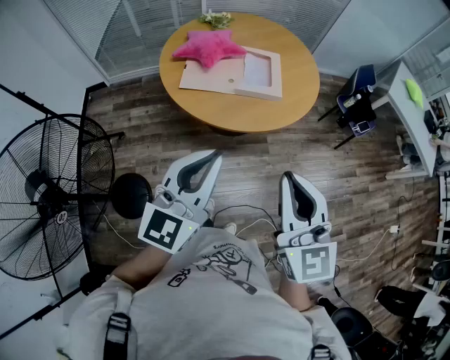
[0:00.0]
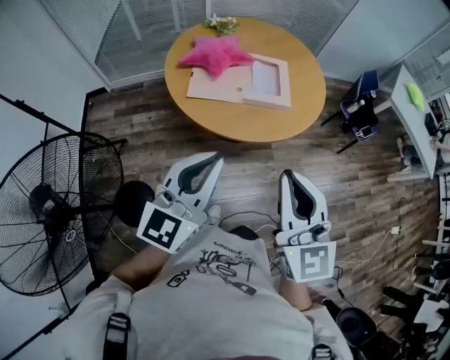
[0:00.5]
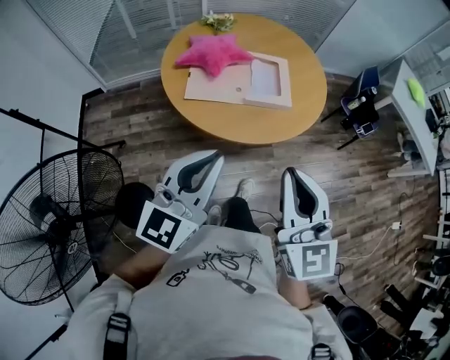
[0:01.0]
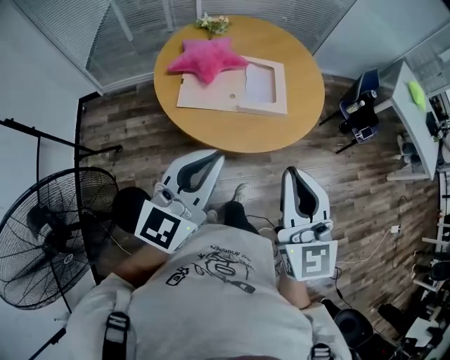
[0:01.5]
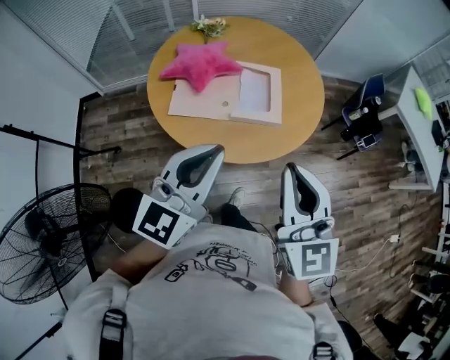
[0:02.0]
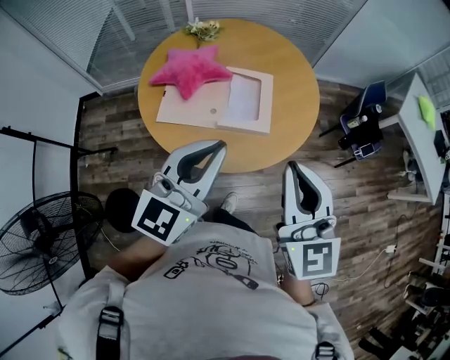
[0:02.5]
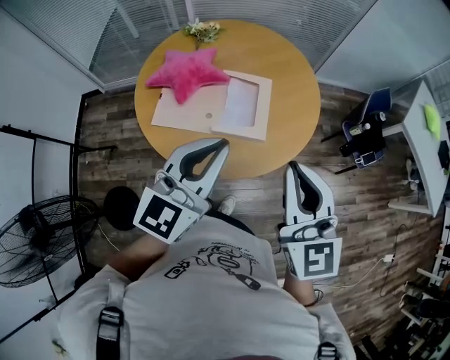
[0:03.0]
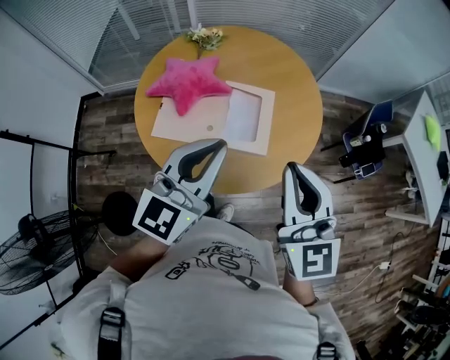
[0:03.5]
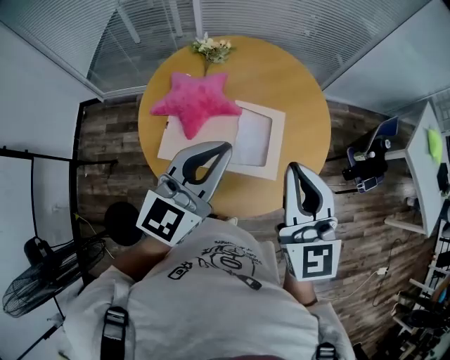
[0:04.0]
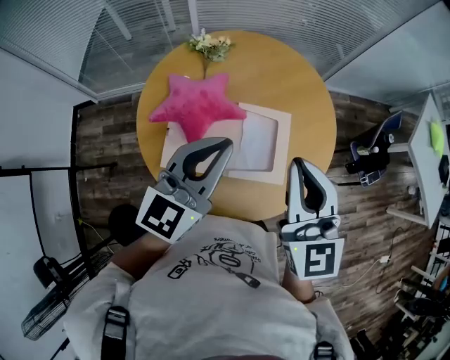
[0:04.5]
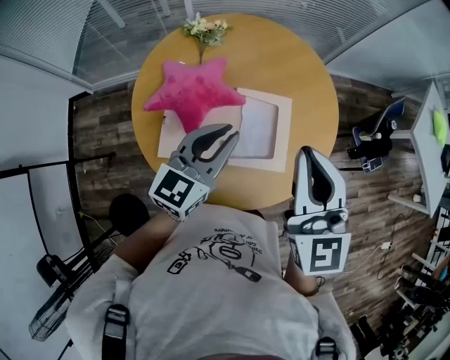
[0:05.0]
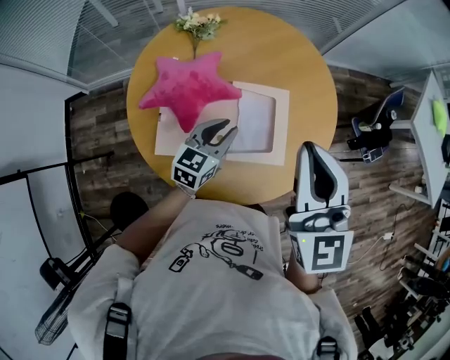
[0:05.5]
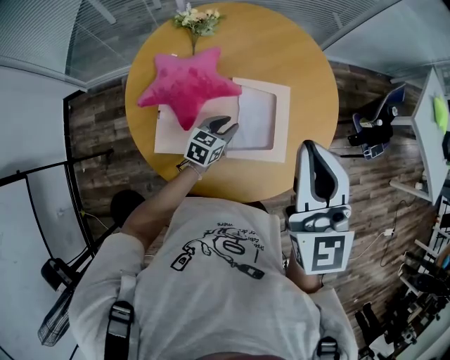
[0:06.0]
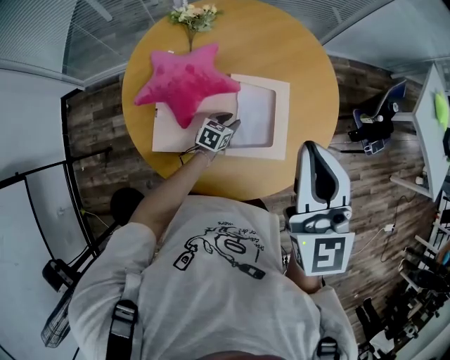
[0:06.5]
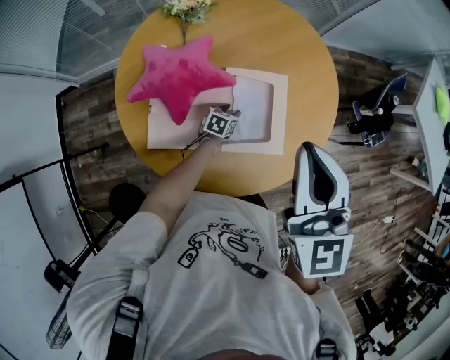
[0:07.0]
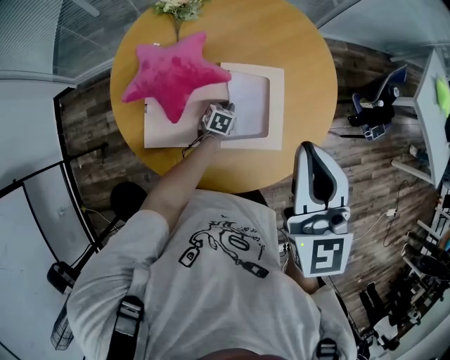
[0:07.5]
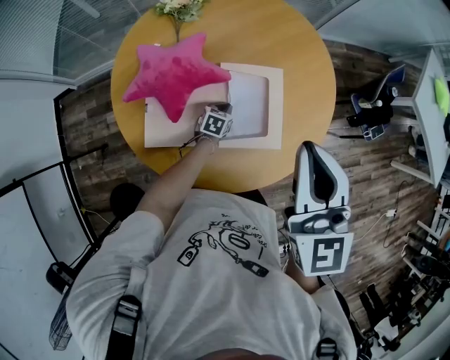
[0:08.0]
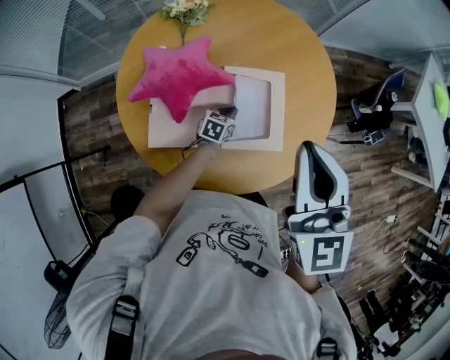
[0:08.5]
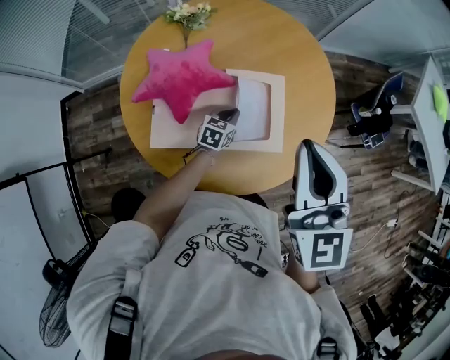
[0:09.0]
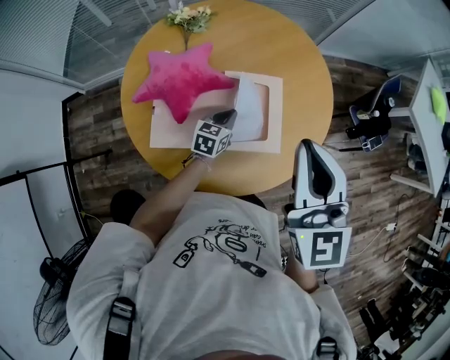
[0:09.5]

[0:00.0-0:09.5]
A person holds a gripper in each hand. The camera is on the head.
0:00.0 to 0:02.0: Both grippers travel together forward, some 20 cm.
0:02.0 to 0:04.0: Both grippers travel together forward, some 30 cm.
0:04.0 to 0:05.5: The right gripper moves forward, roughly 10 cm. The left gripper is displaced downward and forward by approximately 30 cm, and turns by about 30 degrees.
0:05.5 to 0:07.5: The left gripper is displaced downward by approximately 30 cm, and tilts its fingers some 30 degrees downward.
0:07.5 to 0:09.5: The left gripper moves upward, about 15 cm, and changes its angle by about 20 degrees.

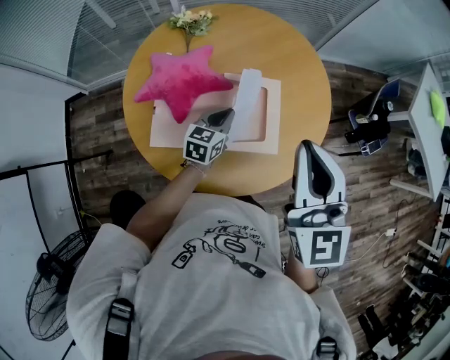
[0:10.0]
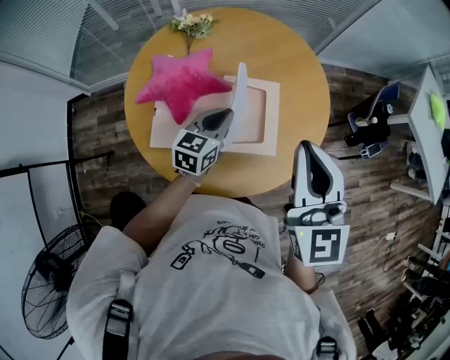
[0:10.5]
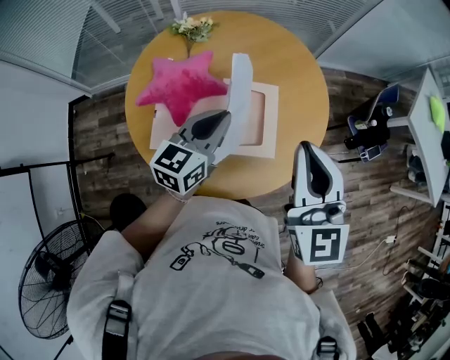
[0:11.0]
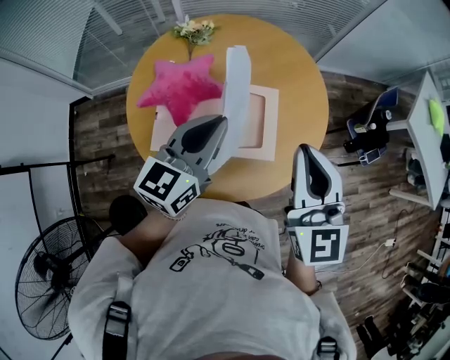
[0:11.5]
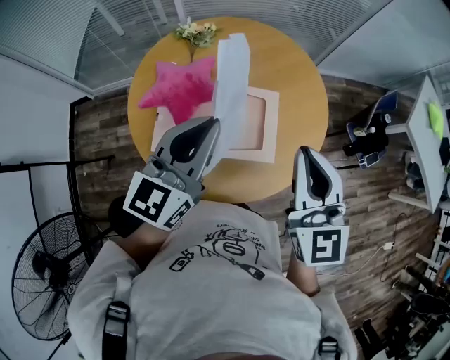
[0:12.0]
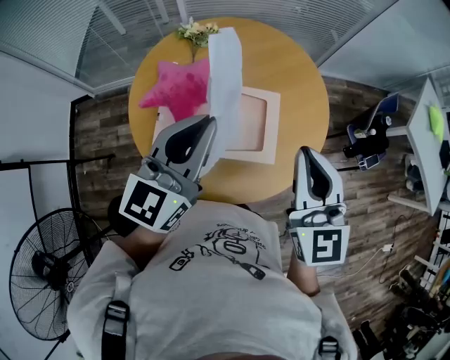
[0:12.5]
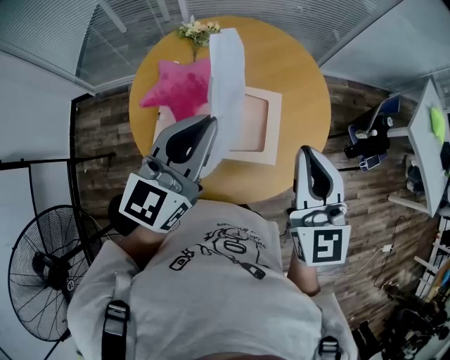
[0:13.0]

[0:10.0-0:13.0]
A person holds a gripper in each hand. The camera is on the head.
0:10.0 to 0:11.5: The left gripper is displaced upward by some 25 cm, and changes its angle by some 20 degrees.
0:11.5 to 0:13.0: The left gripper moves upward, roughly 5 cm.

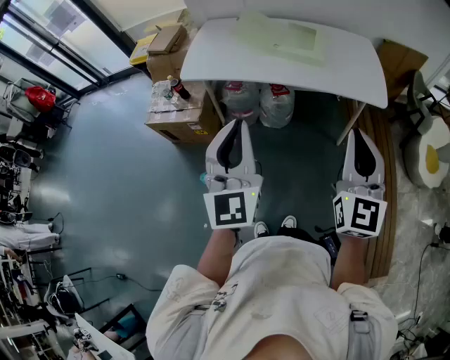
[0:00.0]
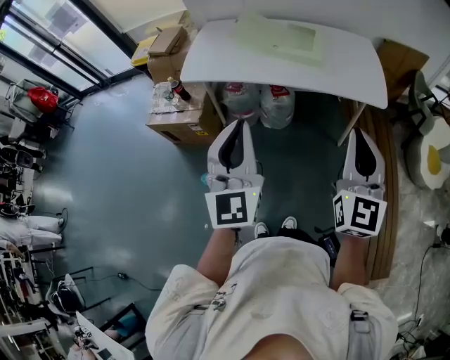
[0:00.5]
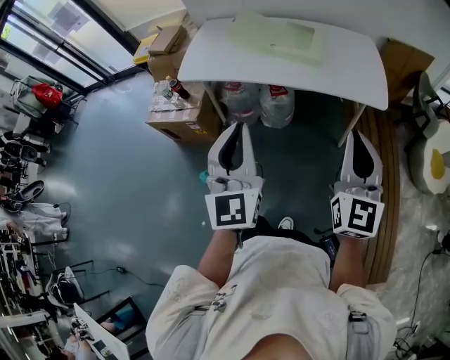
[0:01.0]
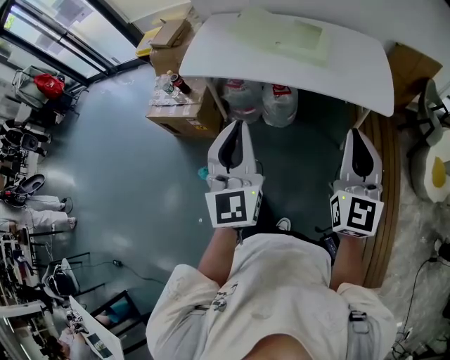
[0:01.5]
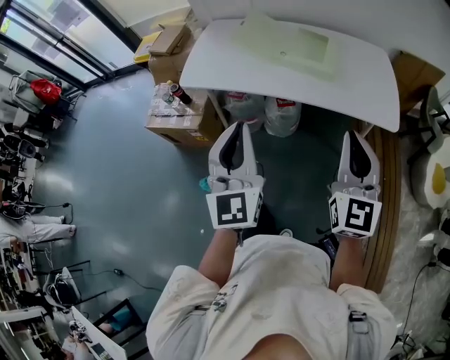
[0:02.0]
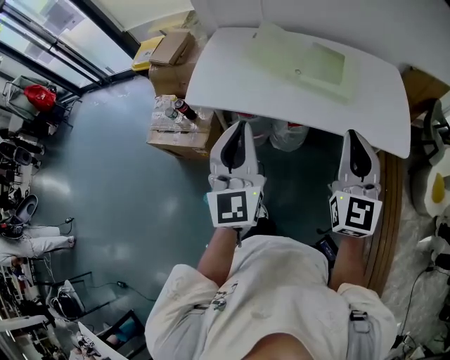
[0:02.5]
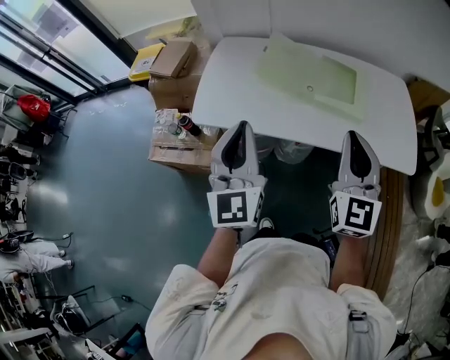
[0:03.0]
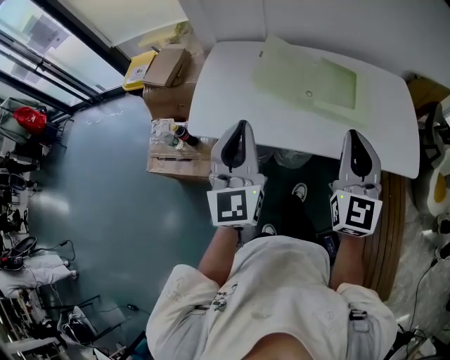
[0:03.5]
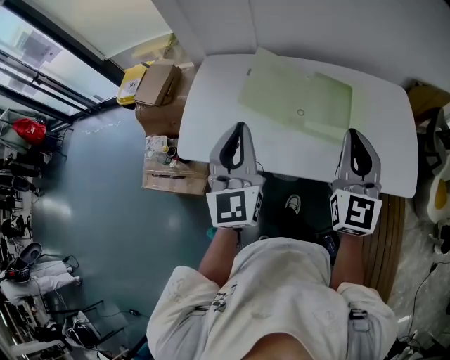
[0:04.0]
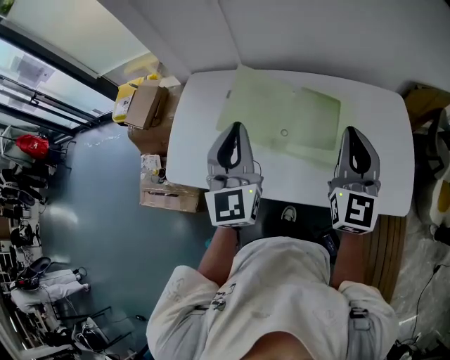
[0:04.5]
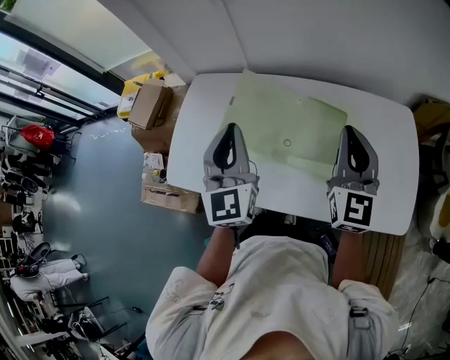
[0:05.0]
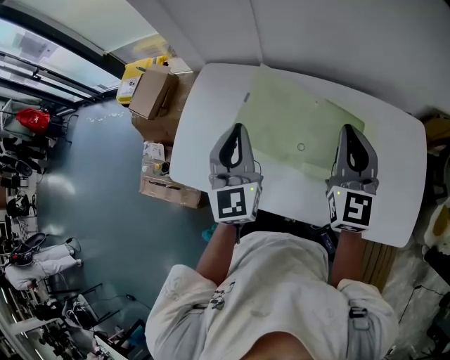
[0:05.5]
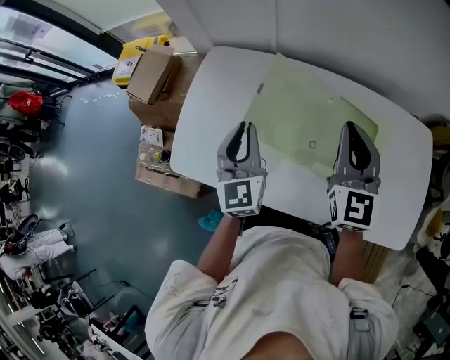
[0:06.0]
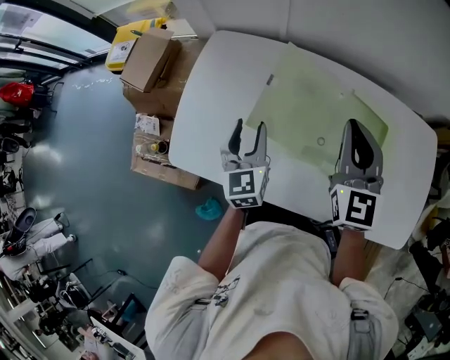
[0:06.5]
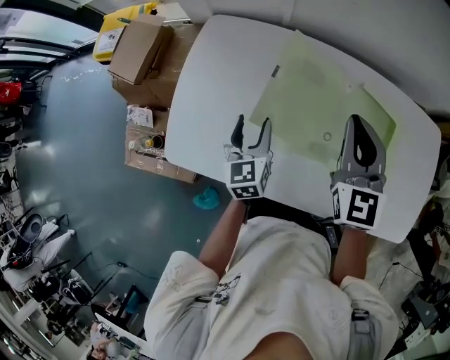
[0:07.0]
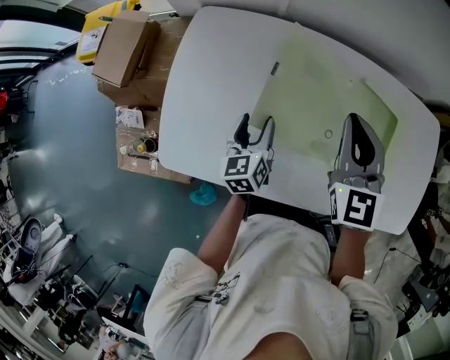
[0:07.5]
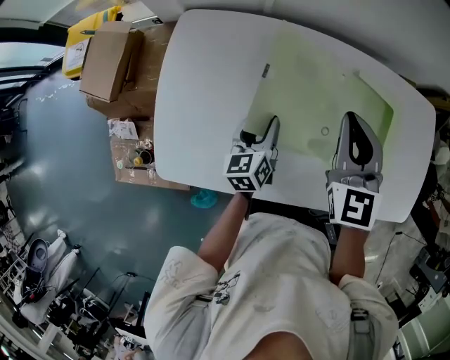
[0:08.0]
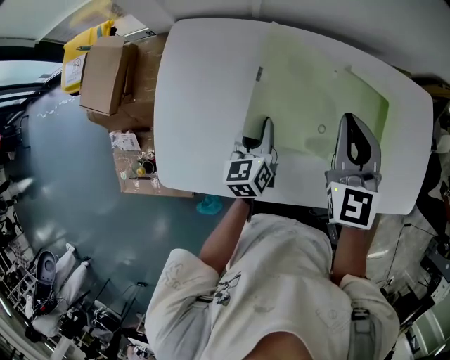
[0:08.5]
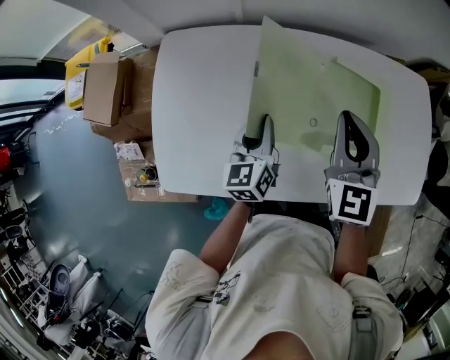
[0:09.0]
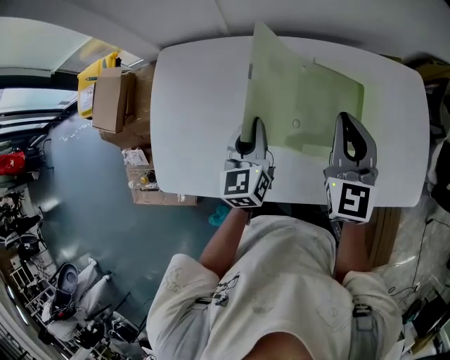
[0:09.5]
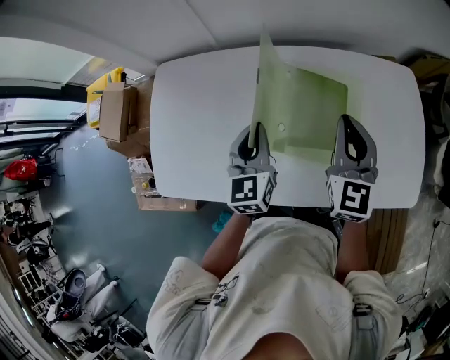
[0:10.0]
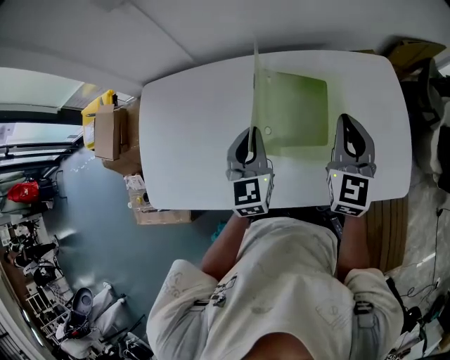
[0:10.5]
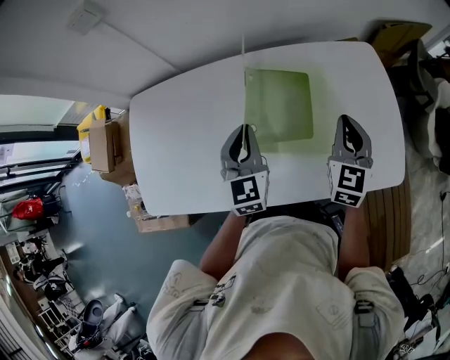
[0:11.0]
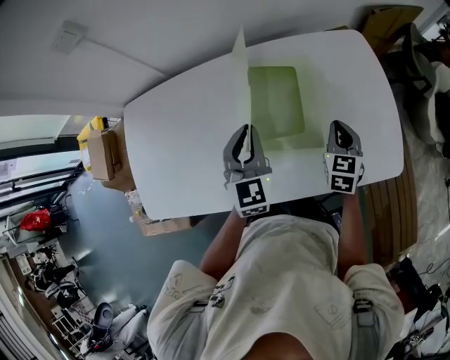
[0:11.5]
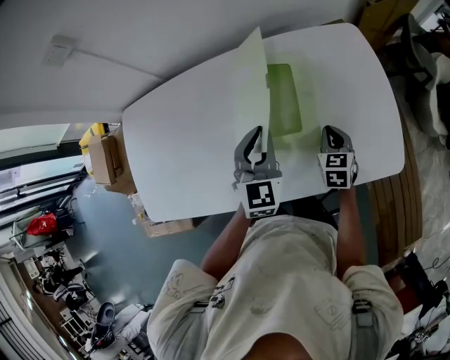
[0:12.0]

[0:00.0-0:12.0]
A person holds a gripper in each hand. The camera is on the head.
0:00.0 to 0:02.0: Both grippers travel together forward, about 10 cm.
0:02.0 to 0:04.0: The grippers both shift forward by roughly 35 cm.
0:04.0 to 0:06.0: The right gripper is displaced forward by some 25 cm. Meanwhile the left gripper travels forward and downward by roughly 25 cm.
0:06.0 to 0:08.0: The right gripper goes some 15 cm downward, to the left and forward. The left gripper is displaced downward by roughly 20 cm, changes its angle by roughly 40 degrees, and opens its fingers.
0:08.0 to 0:10.0: The right gripper is displaced to the right by some 20 cm. The left gripper travels upward and to the right by roughly 20 cm, rotates some 30 degrees, and closes.
0:10.0 to 0:12.0: The left gripper travels to the right by approximately 25 cm, and swivels about 30 degrees, while the right gripper moves to the right and downward, some 30 cm, and rotates roughly 30 degrees.

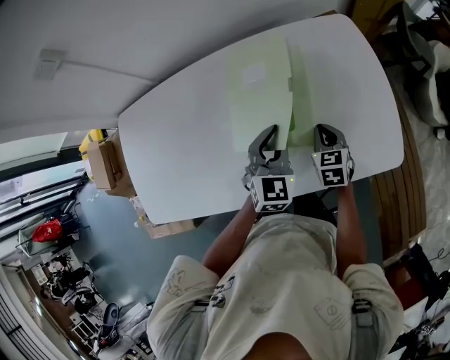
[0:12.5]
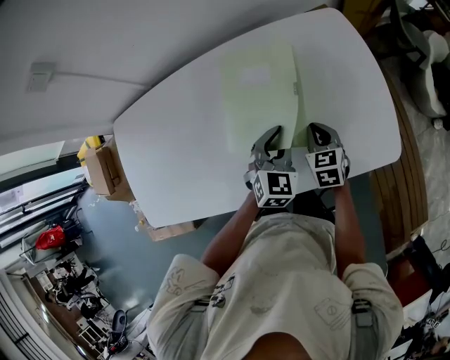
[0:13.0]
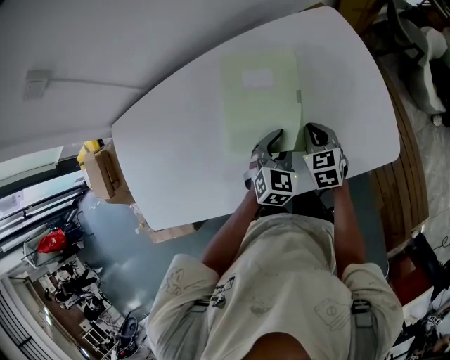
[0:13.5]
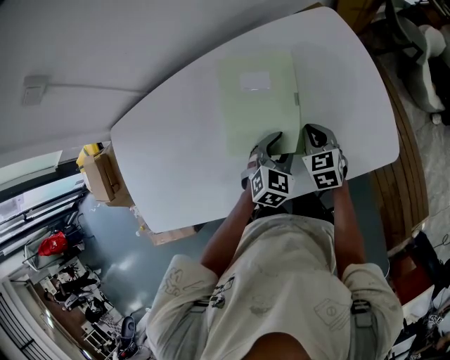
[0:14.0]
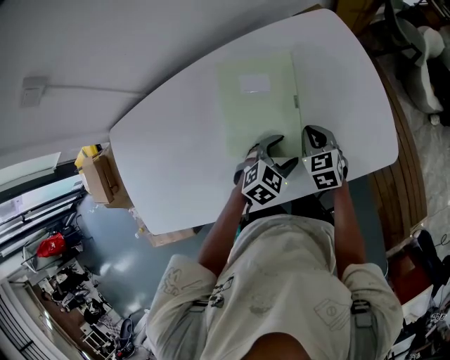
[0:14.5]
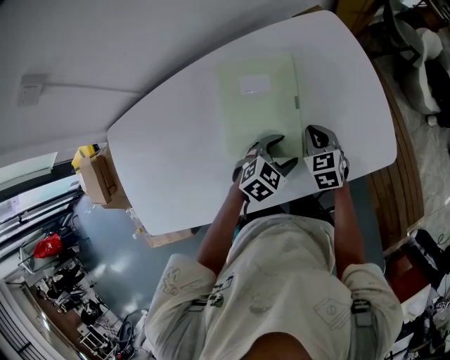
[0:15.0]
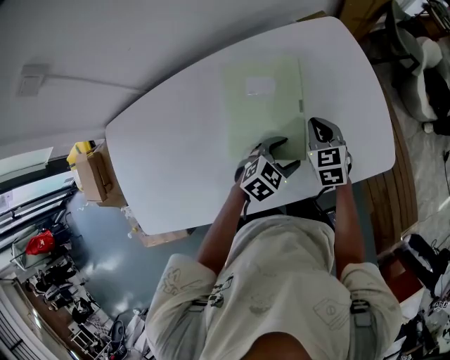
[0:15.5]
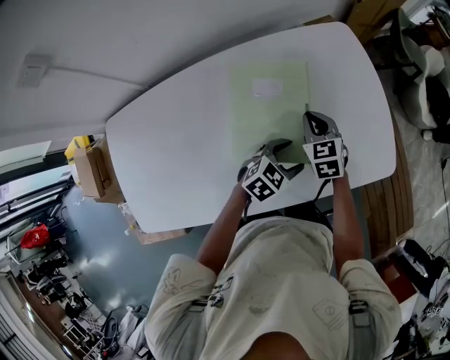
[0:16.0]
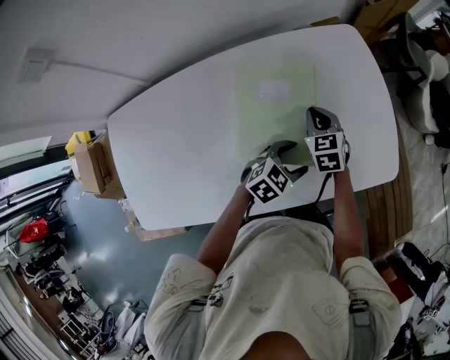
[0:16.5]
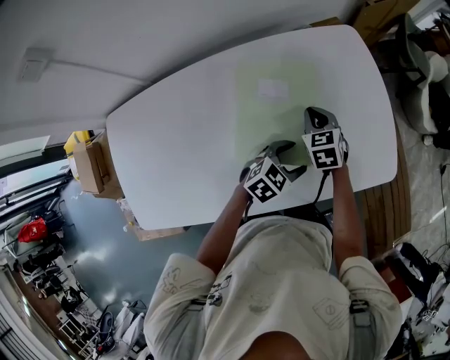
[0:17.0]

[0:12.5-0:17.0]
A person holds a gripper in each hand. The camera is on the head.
0:12.5 to 0:14.5: The left gripper travels downward and to the right by roughly 10 cm, changes its angle by approximately 40 degrees, and opens up.
0:14.5 to 0:17.0: The right gripper is displaced forward and to the left by roughly 10 cm.
